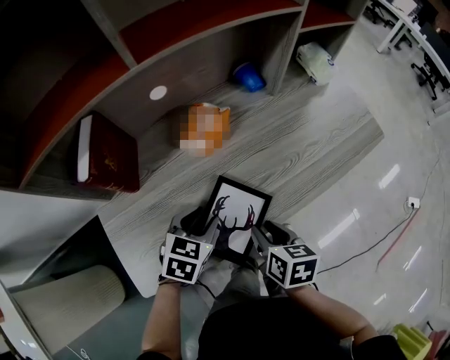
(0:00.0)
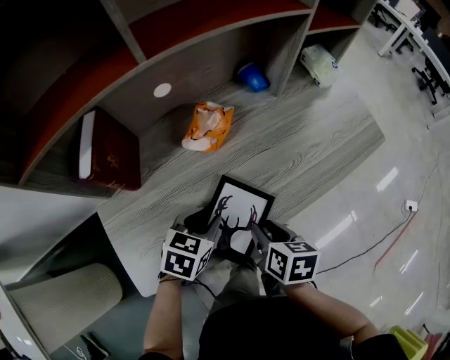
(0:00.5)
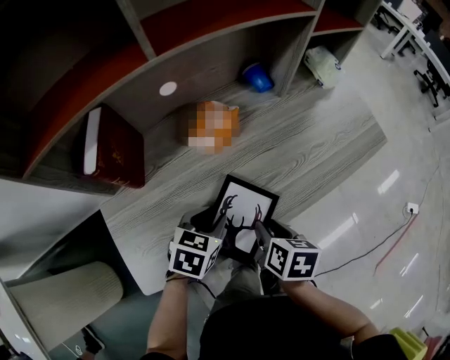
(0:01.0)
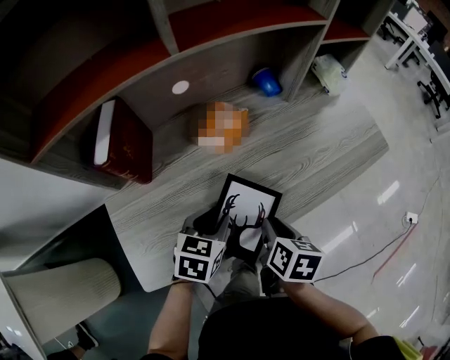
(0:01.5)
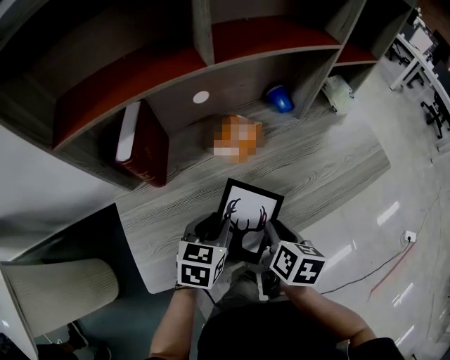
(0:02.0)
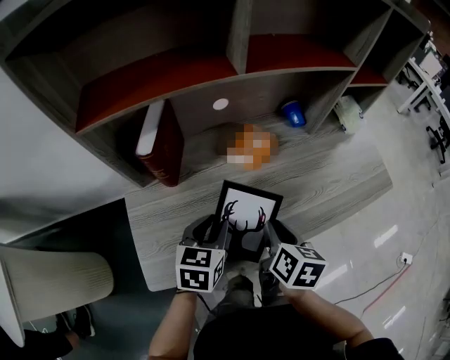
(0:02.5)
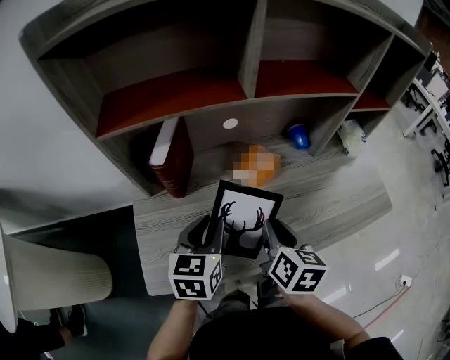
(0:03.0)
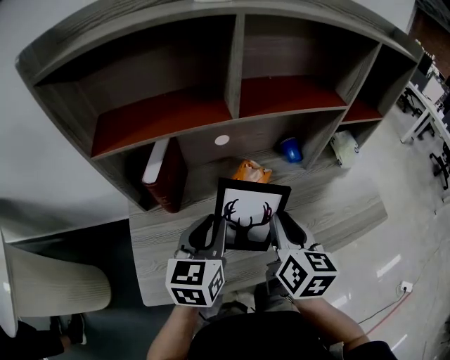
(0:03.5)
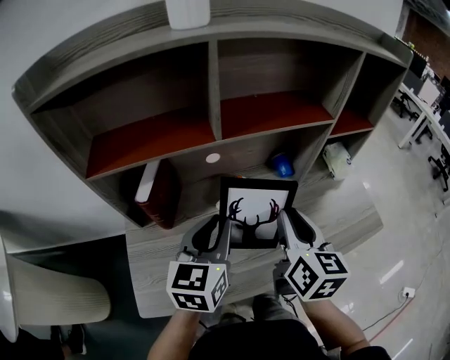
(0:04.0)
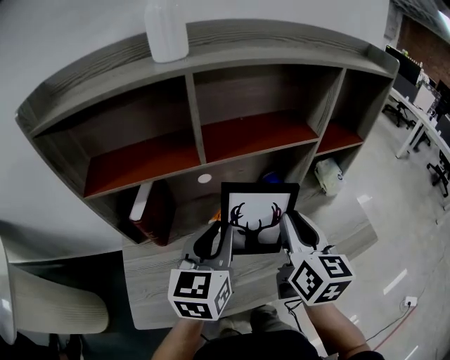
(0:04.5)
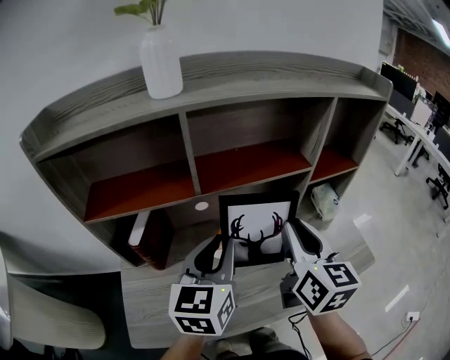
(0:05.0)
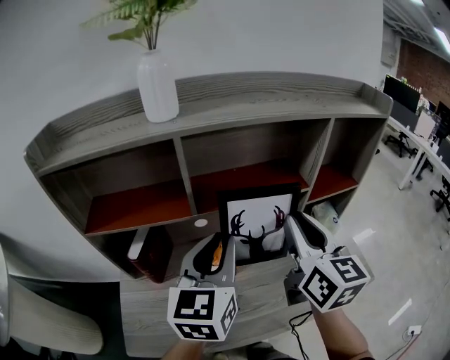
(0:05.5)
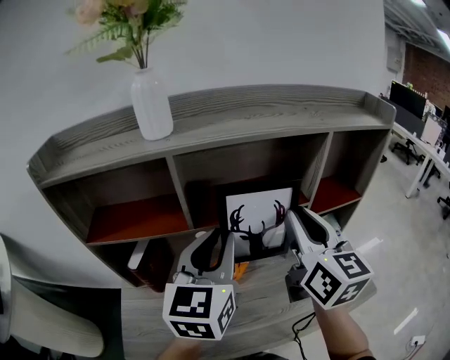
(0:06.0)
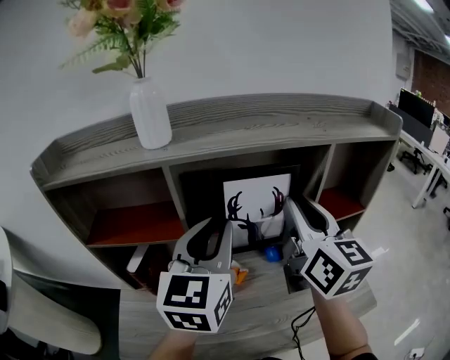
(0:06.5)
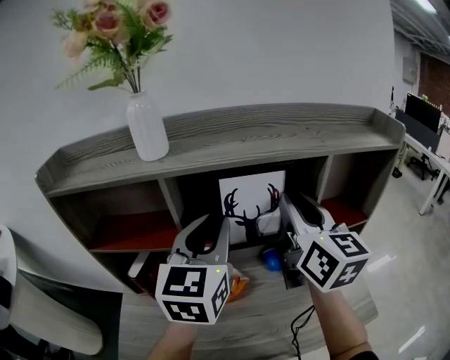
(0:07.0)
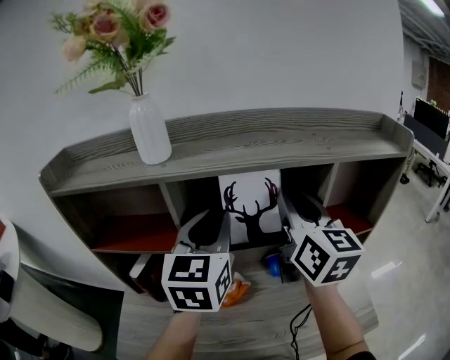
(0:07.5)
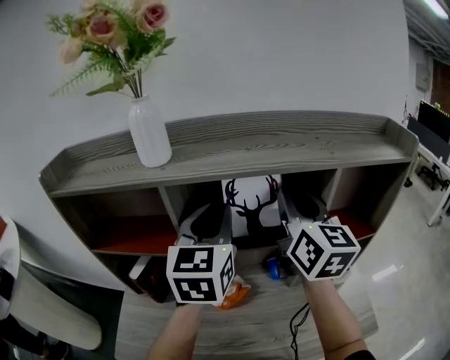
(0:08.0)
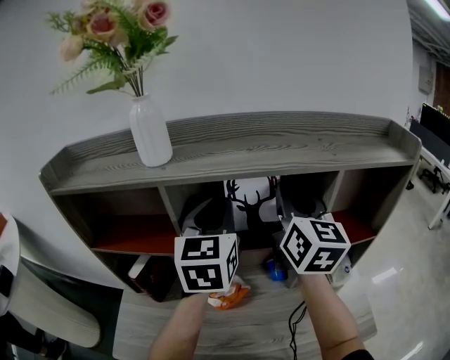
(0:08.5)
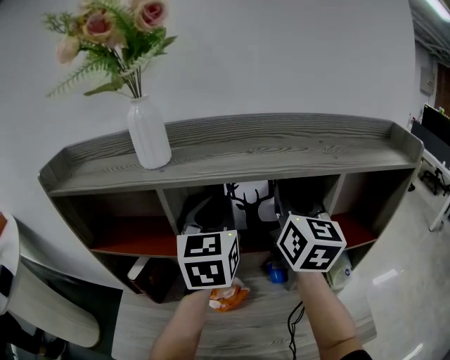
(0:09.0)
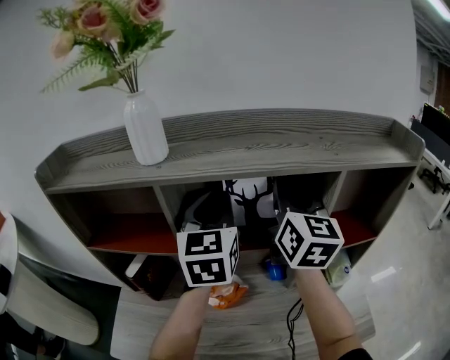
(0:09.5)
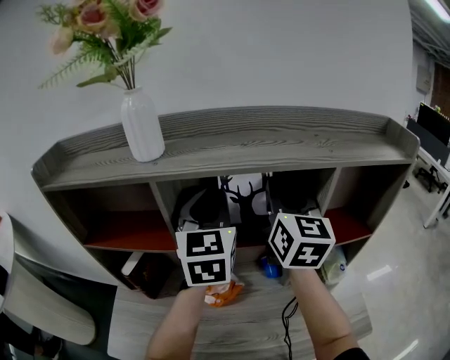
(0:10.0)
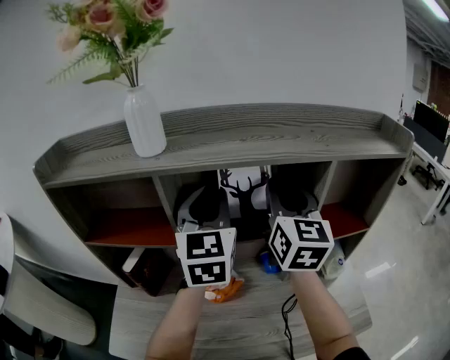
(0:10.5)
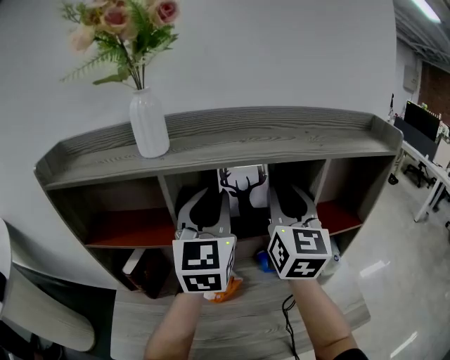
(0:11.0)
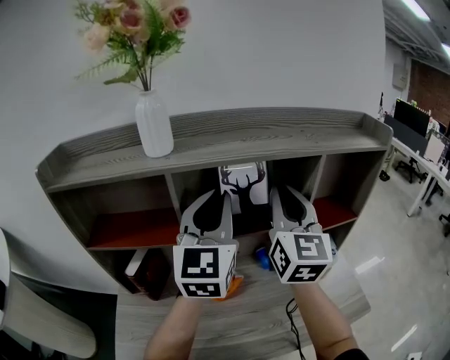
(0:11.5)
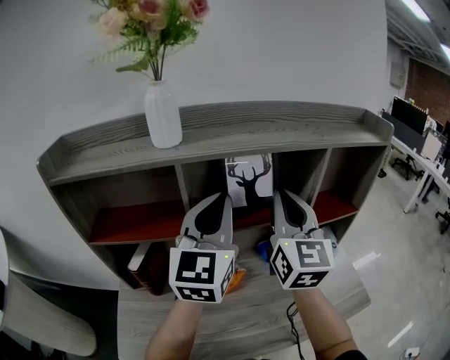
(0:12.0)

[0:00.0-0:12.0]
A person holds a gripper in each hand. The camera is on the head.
0:00.0 to 0:02.0: The grippers stay close to where they were, moving slightly.
0:02.0 to 0:04.0: Both grippers travel together upward and forward, about 20 cm. The left gripper rotates roughly 30 degrees; the right gripper tips its fingers upward by some 30 degrees.
0:04.0 to 0:06.0: The right gripper moves upward, forward and to the right, some 20 cm, and swivels some 20 degrees. The left gripper heads upward, to the right and forward, covering roughly 20 cm.
0:06.0 to 0:08.0: The two grippers go some 15 cm forward and upward.
0:08.0 to 0:10.0: There are only small adjustments of the grippers.
0:10.0 to 0:12.0: Both grippers move backward, roughly 10 cm. The right gripper closes up. Meanwhile the left gripper changes its angle by some 20 degrees.

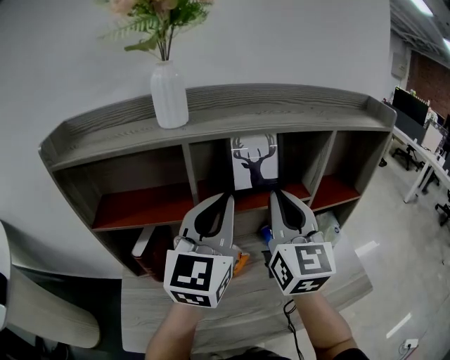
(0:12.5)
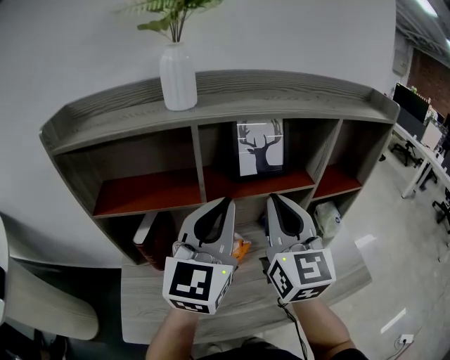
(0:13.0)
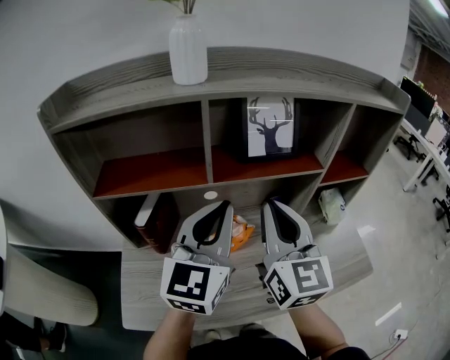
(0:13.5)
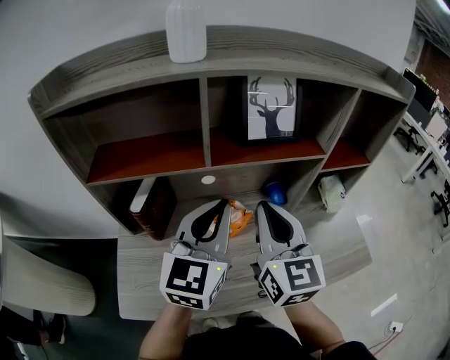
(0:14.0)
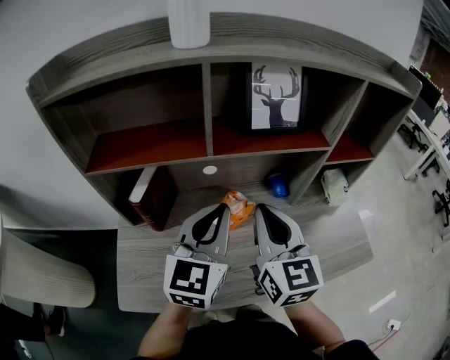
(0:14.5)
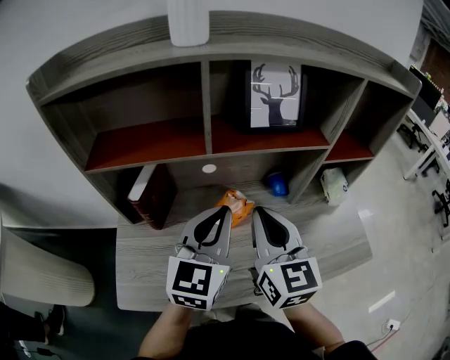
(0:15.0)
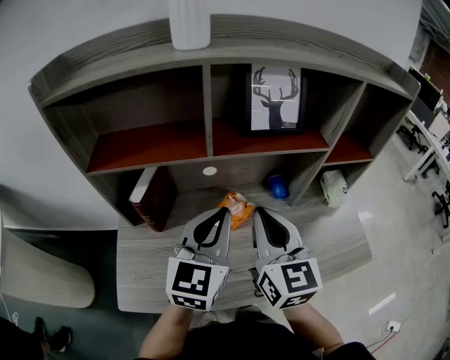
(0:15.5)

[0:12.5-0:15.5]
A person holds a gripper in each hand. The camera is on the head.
0:12.5 to 0:14.0: The left gripper shifts some 10 cm downward and backward. Meanwhile the right gripper shifts about 15 cm downward, backward and to the left.
0:14.0 to 0:15.5: The grippers stay close to where they were, moving slightly.

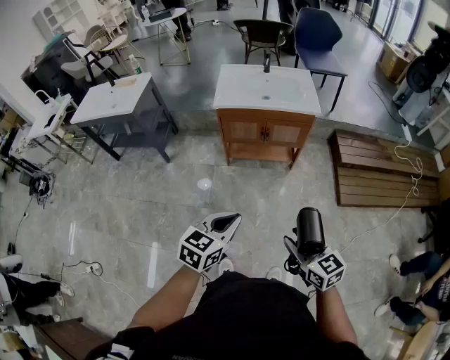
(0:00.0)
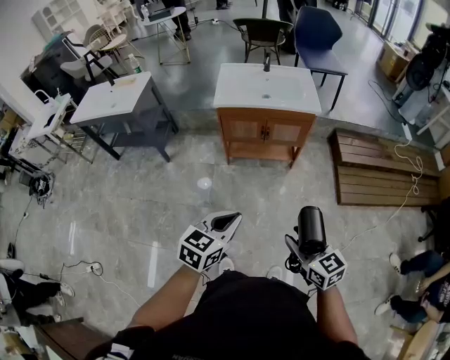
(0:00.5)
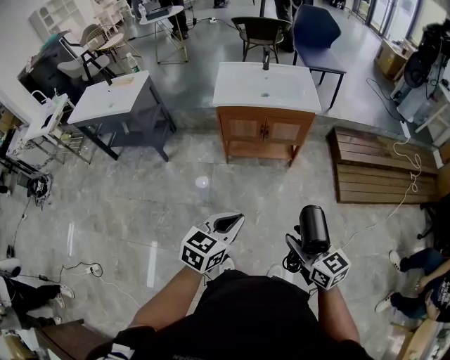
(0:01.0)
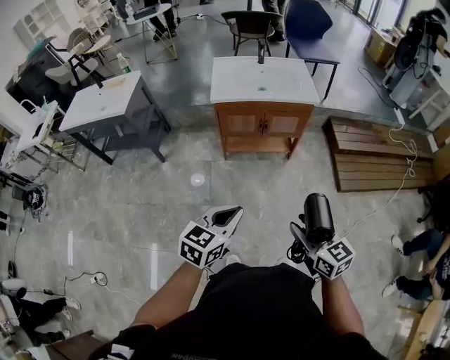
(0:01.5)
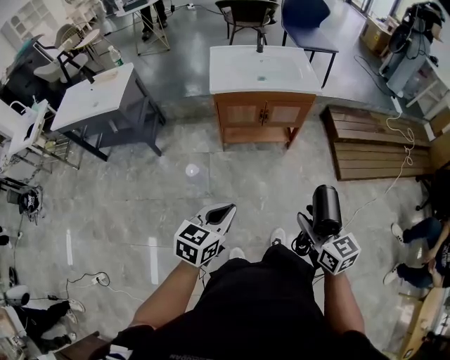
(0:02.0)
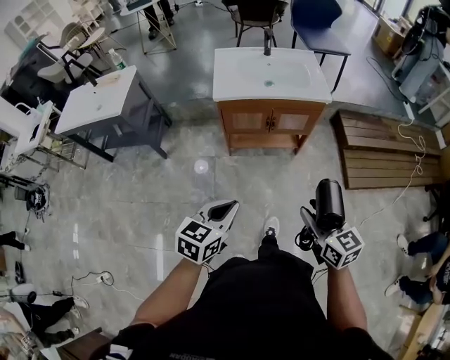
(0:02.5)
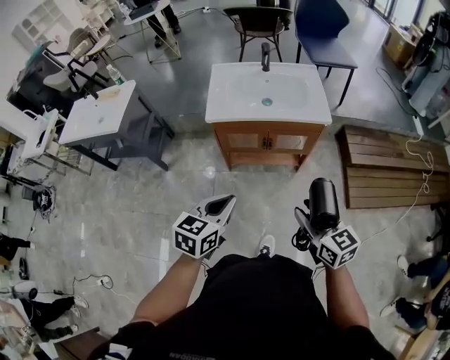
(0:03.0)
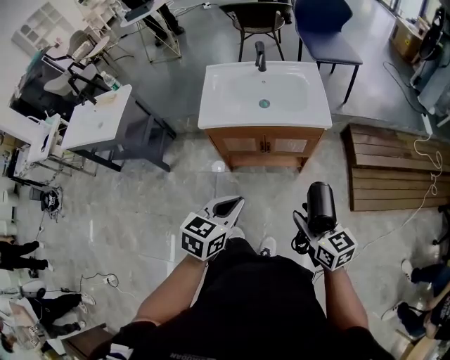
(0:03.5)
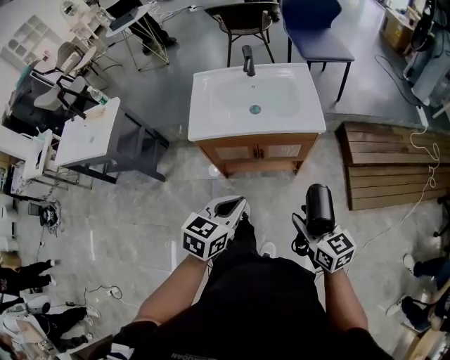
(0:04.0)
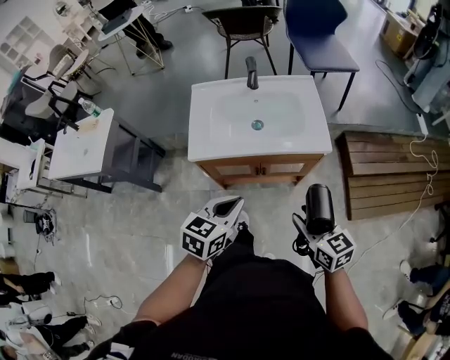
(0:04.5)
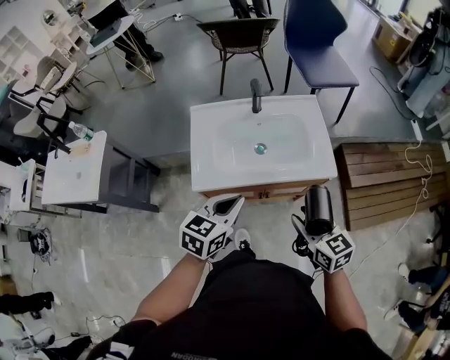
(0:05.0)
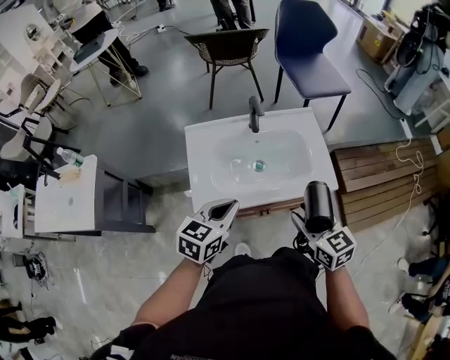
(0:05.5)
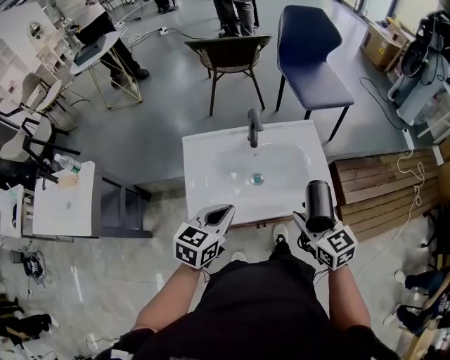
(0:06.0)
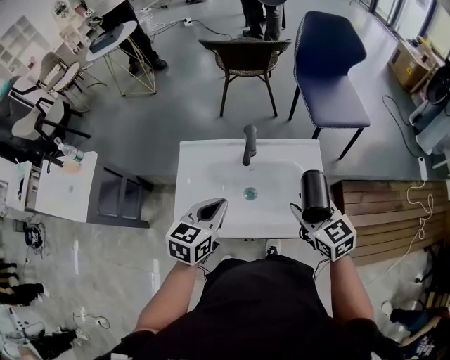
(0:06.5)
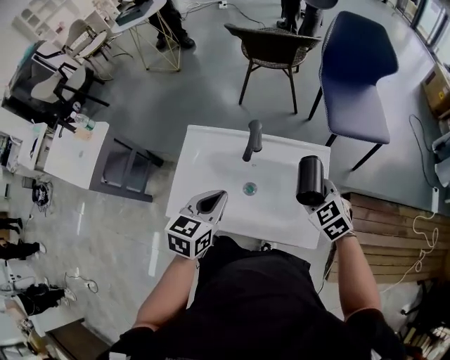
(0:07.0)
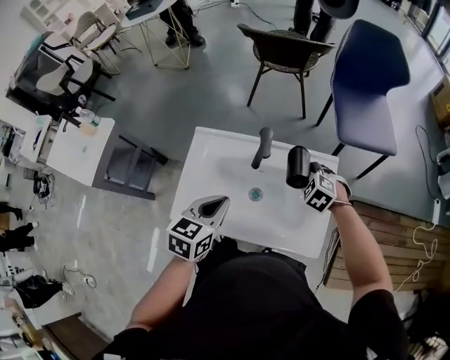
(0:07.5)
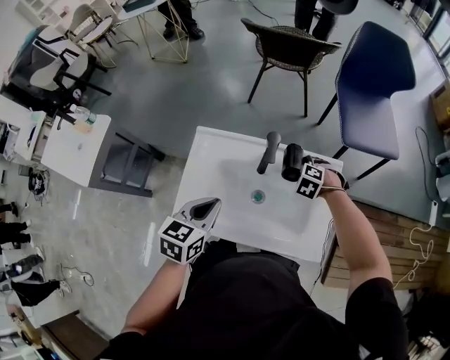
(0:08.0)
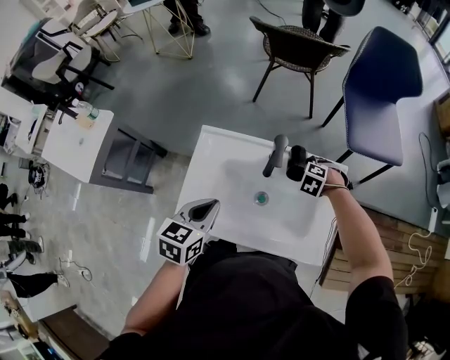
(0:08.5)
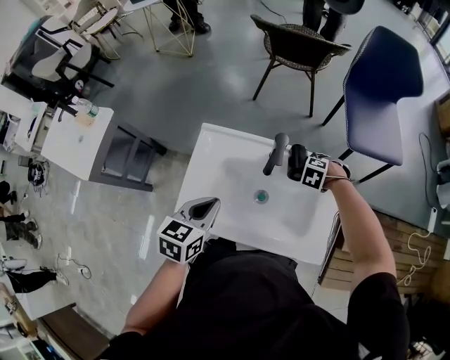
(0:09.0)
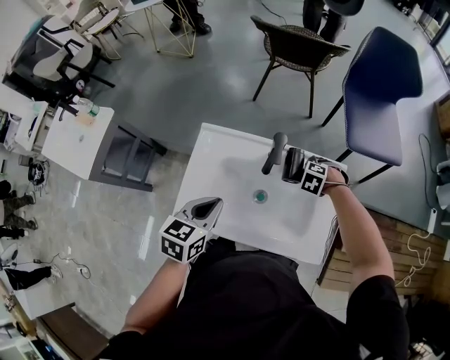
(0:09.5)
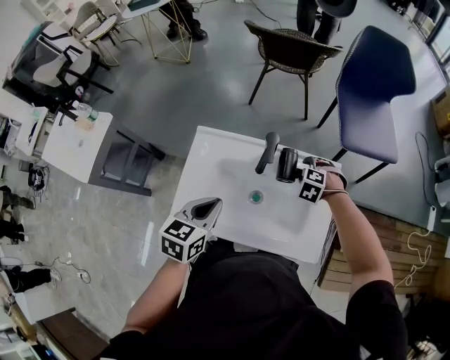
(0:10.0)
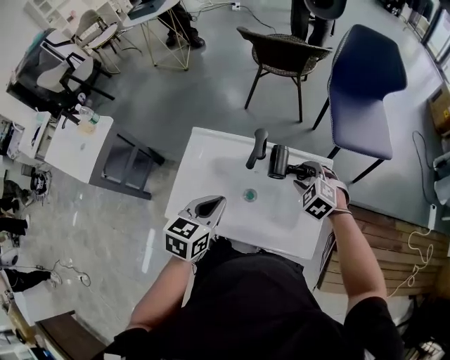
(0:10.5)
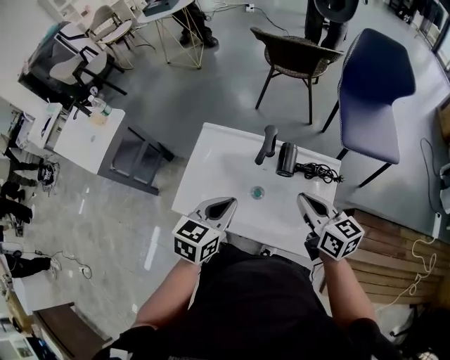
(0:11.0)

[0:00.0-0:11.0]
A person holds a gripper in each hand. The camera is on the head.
0:00.0 to 0:02.0: The right gripper goes about 5 cm to the left. Meanwhile the left gripper is displaced to the left by approximately 10 cm.
0:02.0 to 0:03.5: The right gripper travels forward by approximately 25 cm. Meanwhile the left gripper goes roughly 30 cm forward and to the right.
0:03.5 to 0:05.5: The grippers both shift forward by roughly 30 cm.
0:05.5 to 0:07.5: The right gripper moves forward and downward, about 35 cm, and rolls counterclockwise, seen from behind, by approximately 60 degrees, while the left gripper goes roughly 15 cm forward and to the right, and changes its angle by about 30 degrees.
0:07.5 to 0:09.0: The left gripper shifts by some 5 cm. Meanwhile the right gripper moves downward, roughly 10 cm, and turns by about 30 degrees.
0:09.0 to 0:11.0: The left gripper ends up about 10 cm from where it was, while the right gripper goes some 20 cm upward, tips its fingers upward by approximately 70 degrees, and closes.
